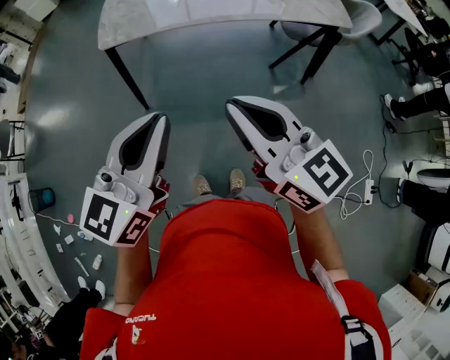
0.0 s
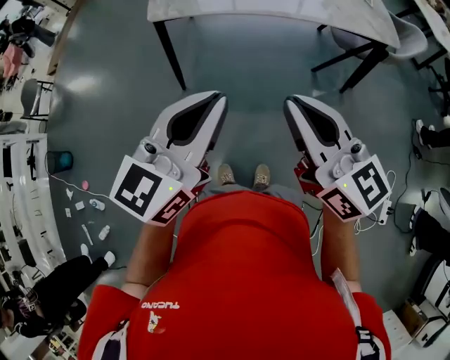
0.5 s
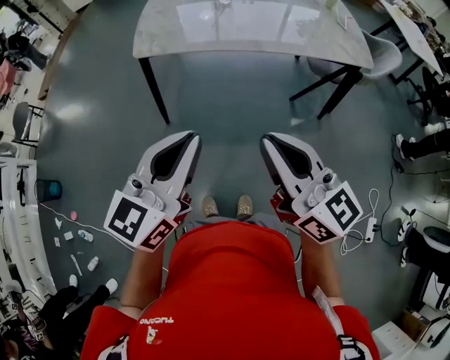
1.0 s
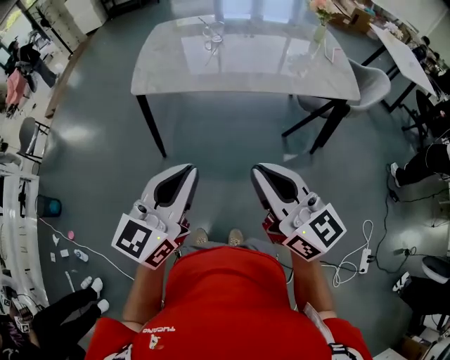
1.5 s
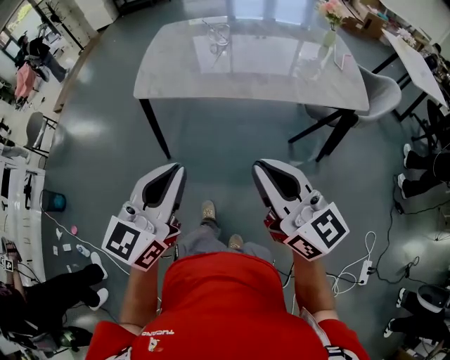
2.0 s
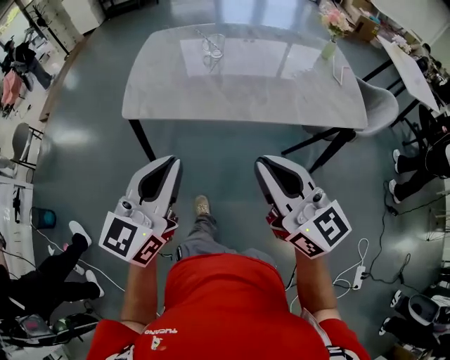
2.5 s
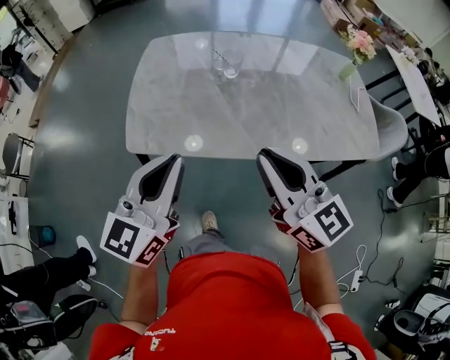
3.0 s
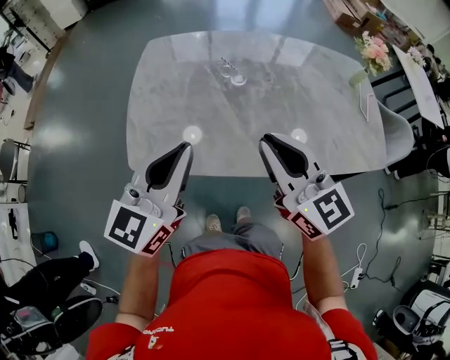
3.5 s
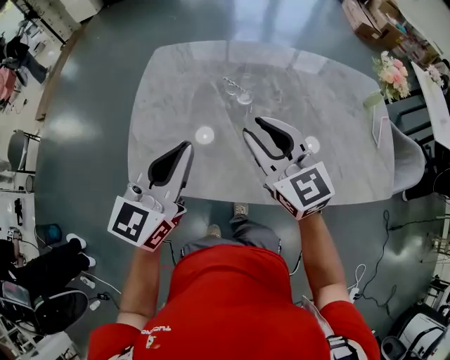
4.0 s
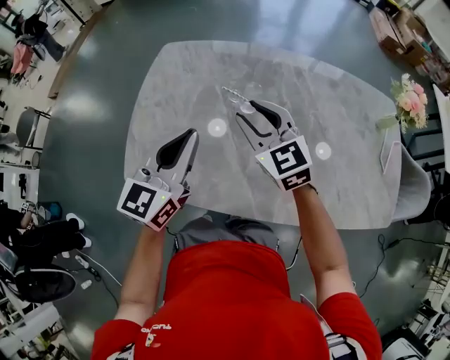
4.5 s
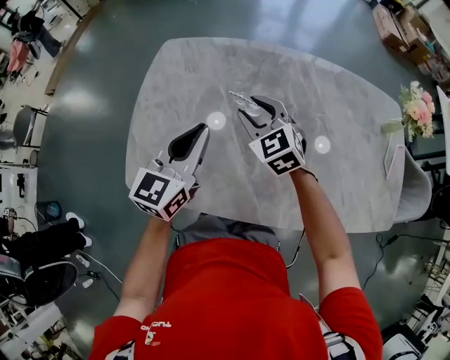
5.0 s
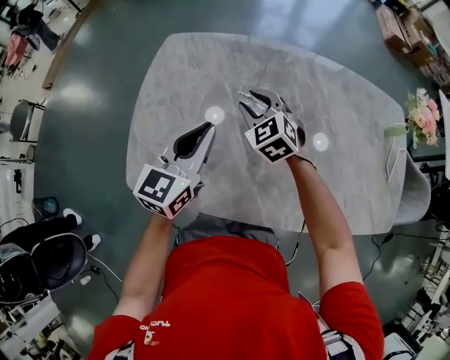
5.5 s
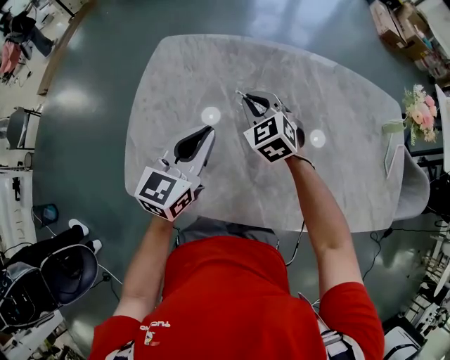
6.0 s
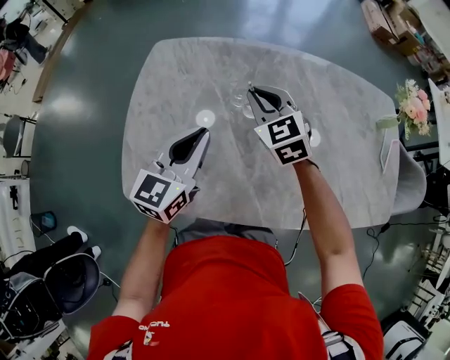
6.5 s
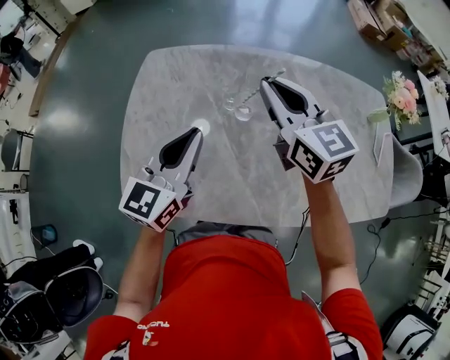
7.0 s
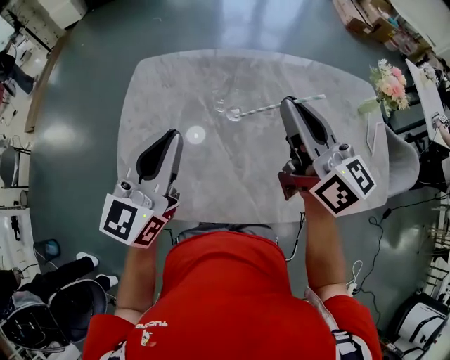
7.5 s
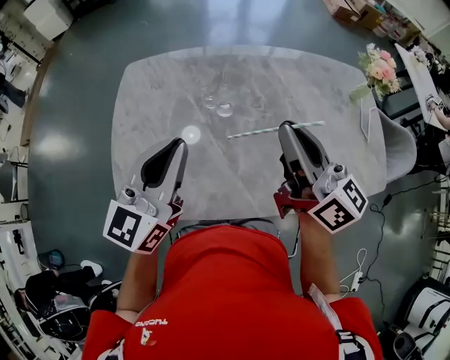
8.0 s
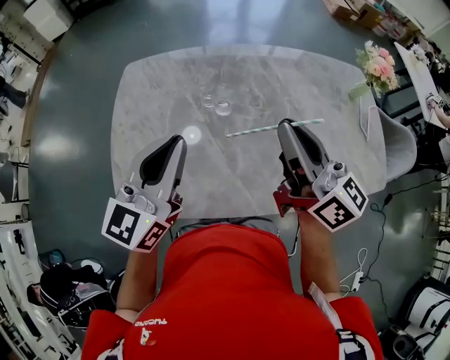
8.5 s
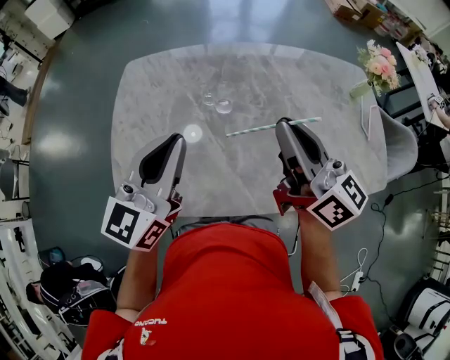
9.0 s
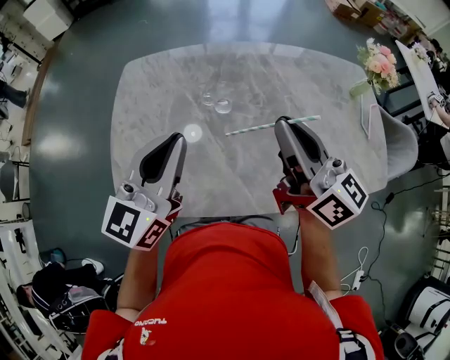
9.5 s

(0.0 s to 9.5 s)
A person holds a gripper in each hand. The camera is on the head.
0.0 s - 2.0 s: The left gripper heads forward and to the right, covering roughly 5 cm; the right gripper moves to the right and forward, some 10 cm.
2.0 s - 4.0 s: The two grippers travel together, forward, roughly 50 cm. The right gripper changes its angle by roughly 30 degrees, and opens.
4.0 s - 5.5 s: The left gripper moves forward and downward, about 15 cm. Meanwhile the right gripper travels forward and downward by some 25 cm, and swivels about 30 degrees.
5.5 s - 7.5 s: The left gripper travels upward by roughly 10 cm. The right gripper moves upward and to the right, about 25 cm, tilts its fingers roughly 40 degrees upward, and closes.
7.5 s - 9.5 s: The right gripper goes about 5 cm backward.

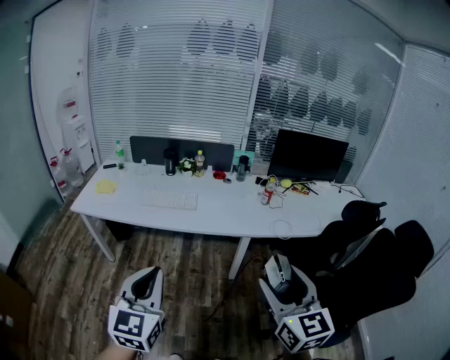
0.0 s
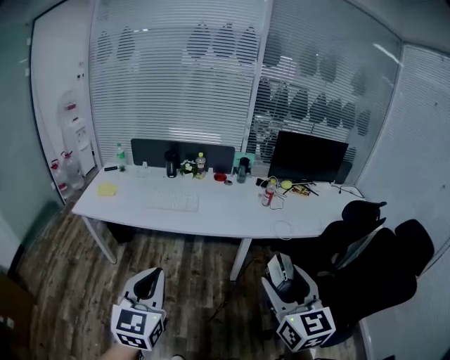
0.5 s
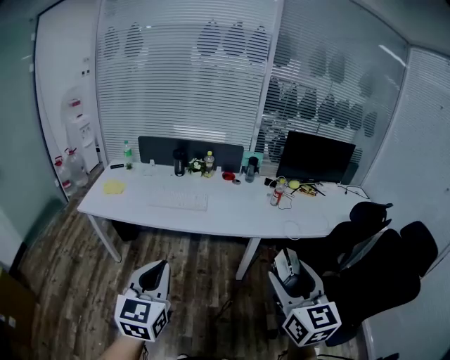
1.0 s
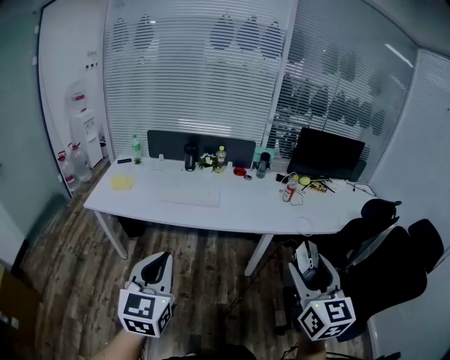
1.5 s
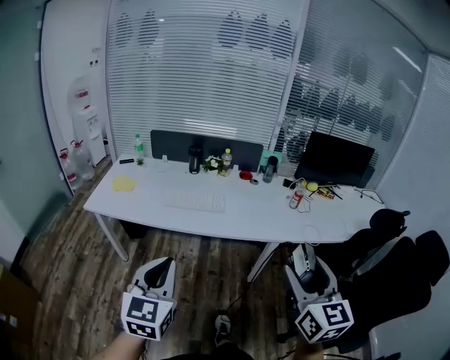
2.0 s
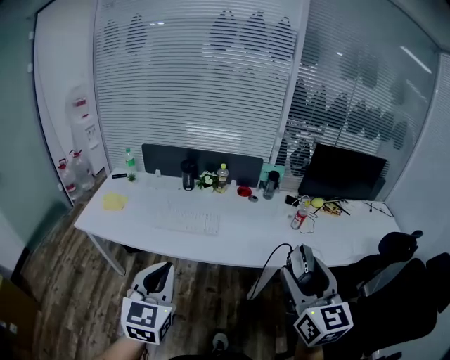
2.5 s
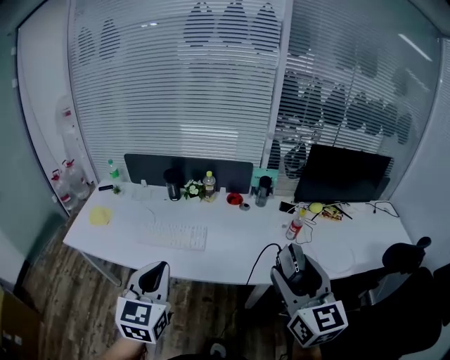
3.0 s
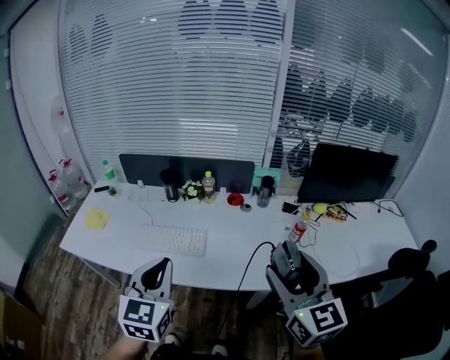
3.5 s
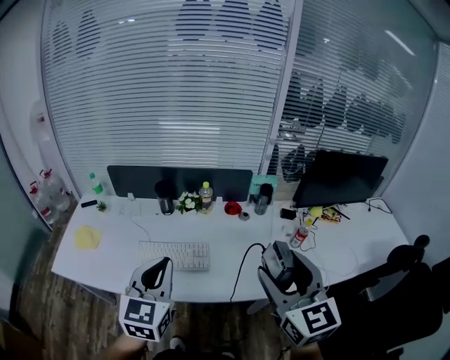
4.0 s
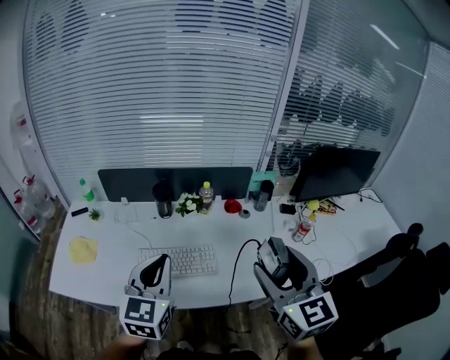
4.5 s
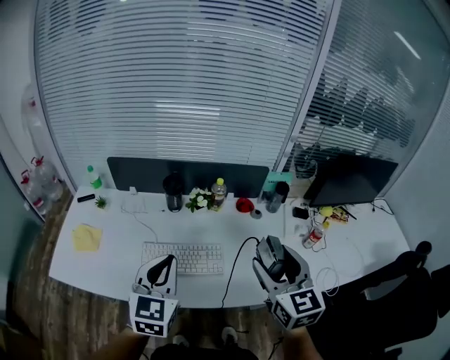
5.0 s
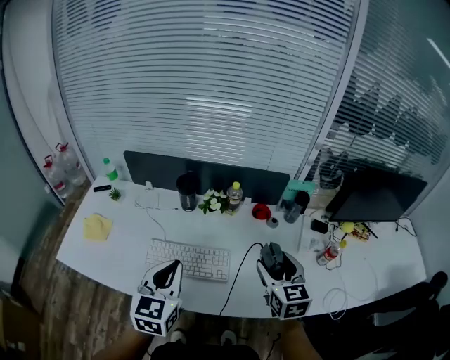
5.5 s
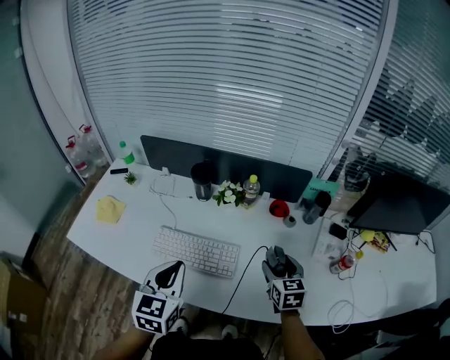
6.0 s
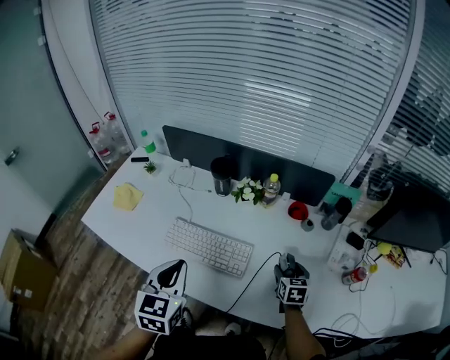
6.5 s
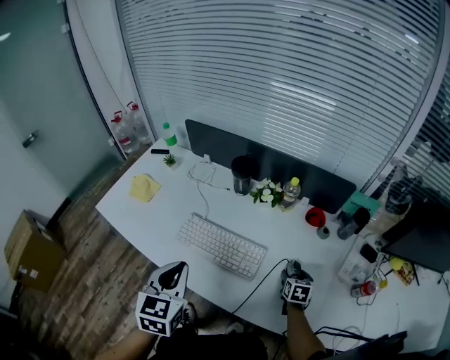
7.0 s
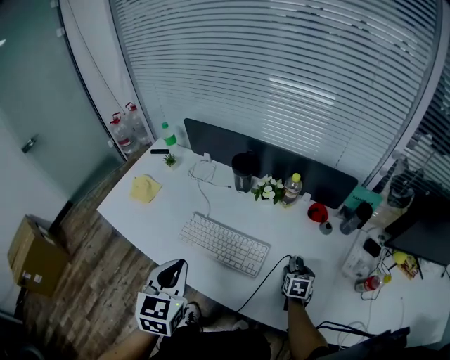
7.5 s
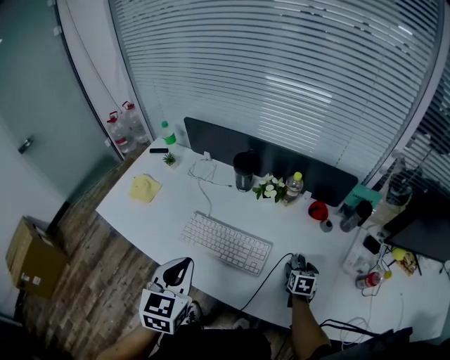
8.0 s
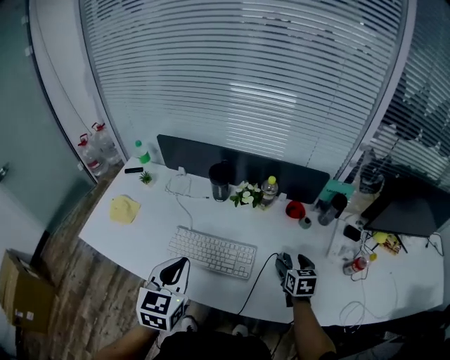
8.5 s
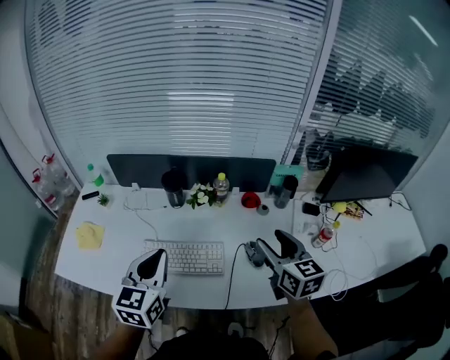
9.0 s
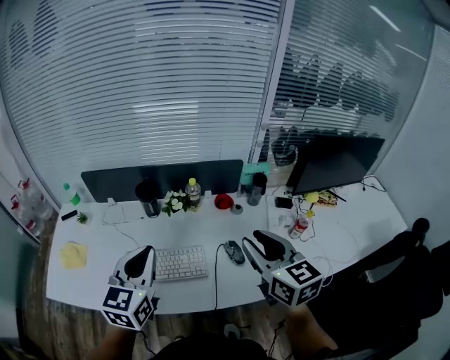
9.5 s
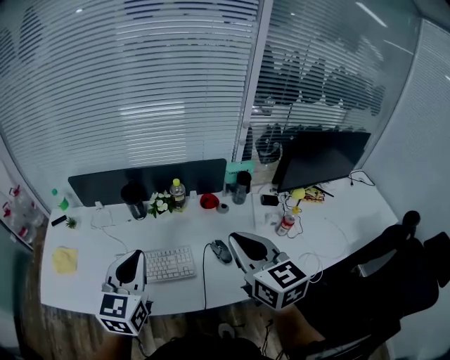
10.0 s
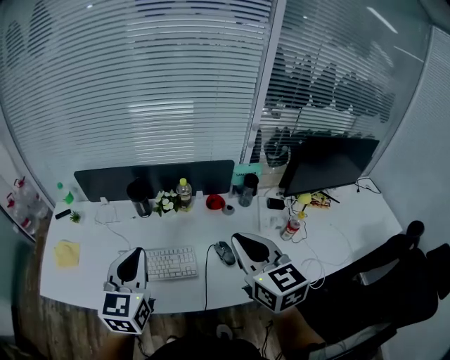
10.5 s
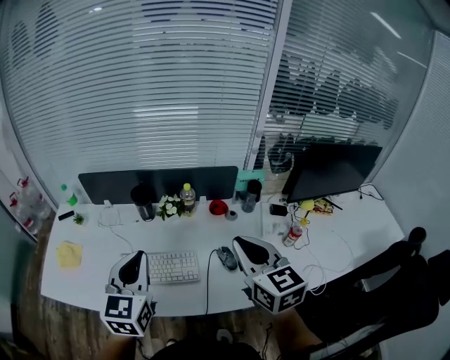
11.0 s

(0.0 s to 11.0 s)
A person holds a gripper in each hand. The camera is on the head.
0.0 s - 2.0 s: The two grippers go about 15 cm to the left and forward.
2.0 s - 3.5 s: The right gripper is displaced forward by about 30 cm, while the left gripper is displaced forward and to the right by about 30 cm.
3.5 s - 5.5 s: The left gripper goes about 20 cm forward, to the left and downward, while the right gripper heads forward, downward and to the left, covering roughly 30 cm.
5.5 s - 7.5 s: The left gripper changes place by approximately 5 cm, and turns by about 30 degrees. The right gripper travels downward by some 30 cm, and changes its angle by roughly 30 degrees.
7.5 s - 9.0 s: The left gripper heads upward and forward, covering about 10 cm, and turns by about 30 degrees; the right gripper is displaced upward by some 35 cm, and tips its fingers upward by approximately 30 degrees.
9.0 s - 11.0 s: The right gripper heads upward, covering approximately 10 cm, and closes its fingers, while the left gripper moves upward, some 5 cm.

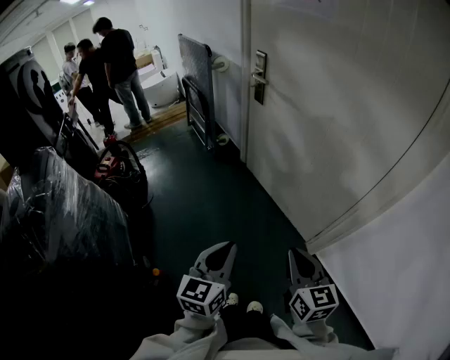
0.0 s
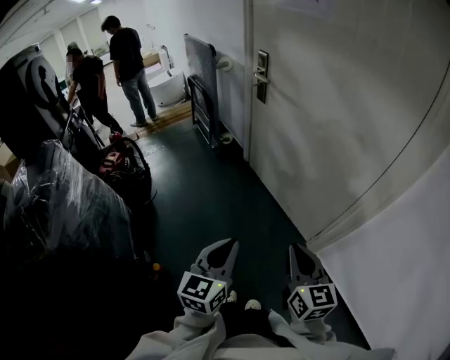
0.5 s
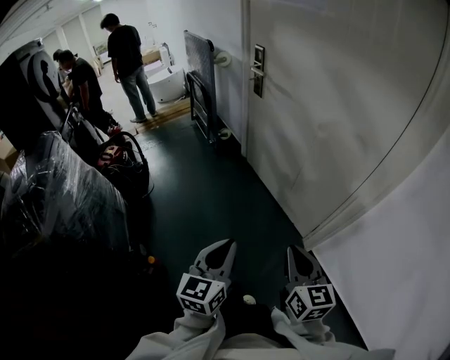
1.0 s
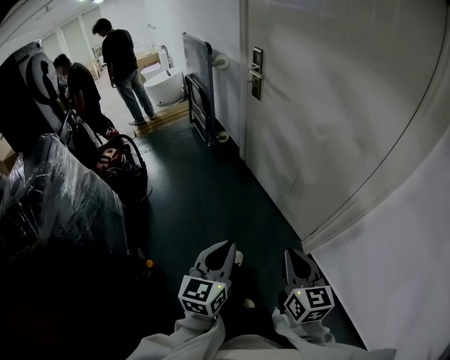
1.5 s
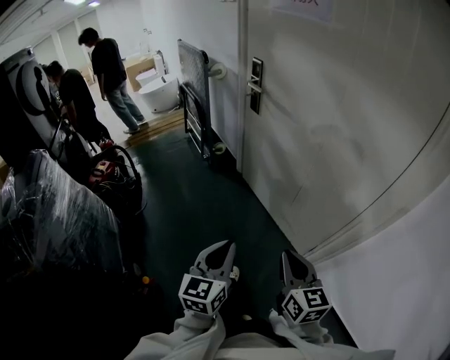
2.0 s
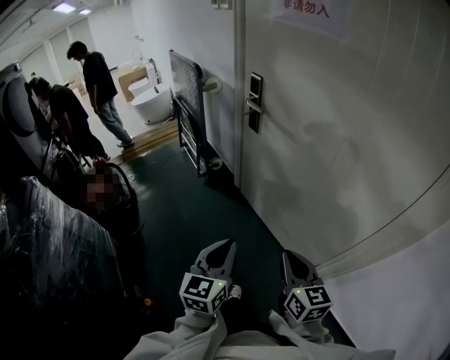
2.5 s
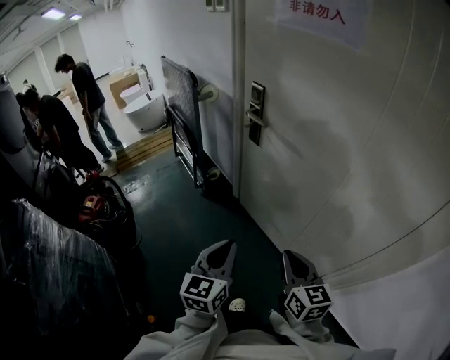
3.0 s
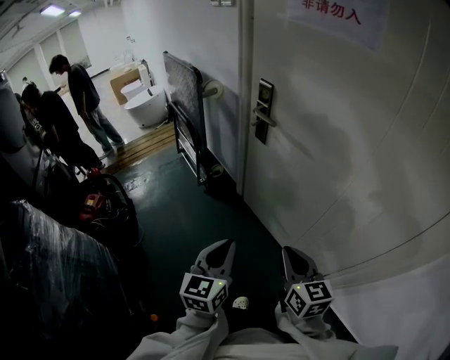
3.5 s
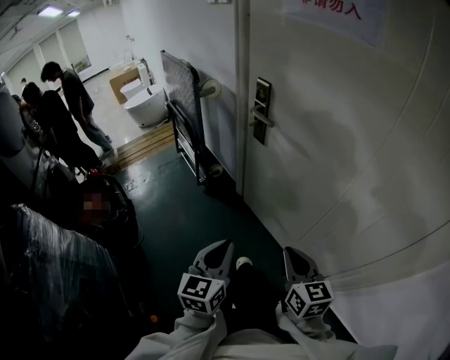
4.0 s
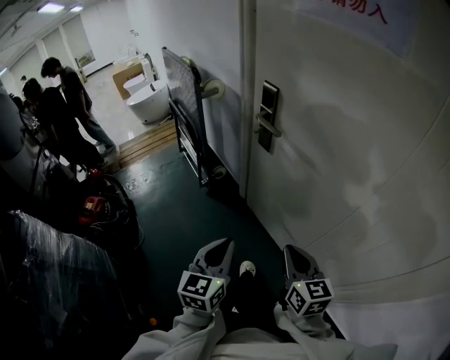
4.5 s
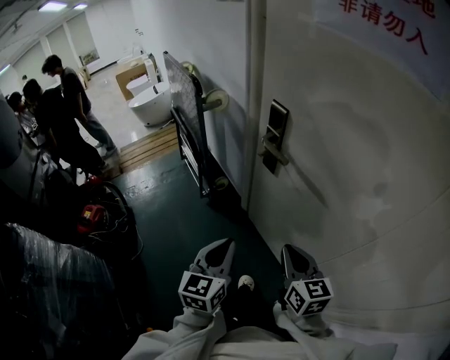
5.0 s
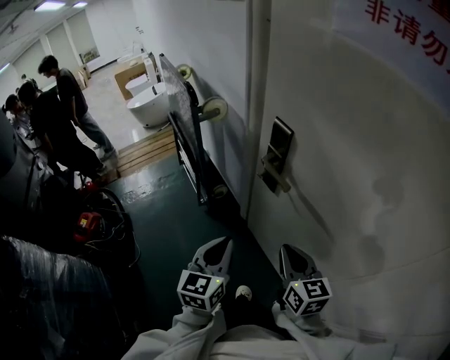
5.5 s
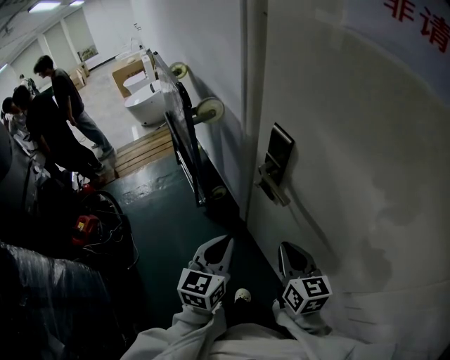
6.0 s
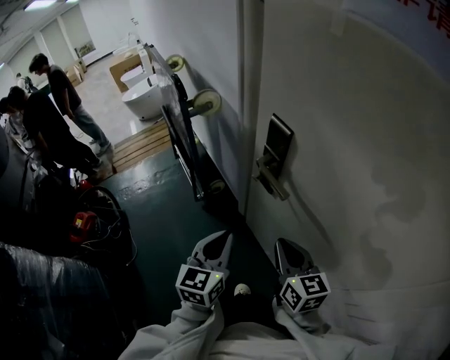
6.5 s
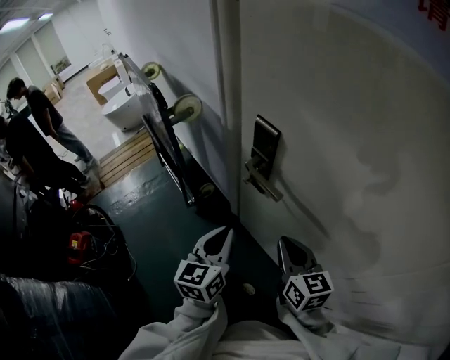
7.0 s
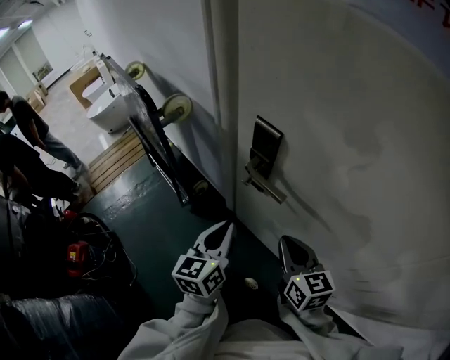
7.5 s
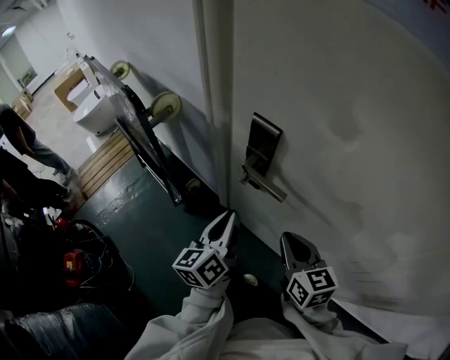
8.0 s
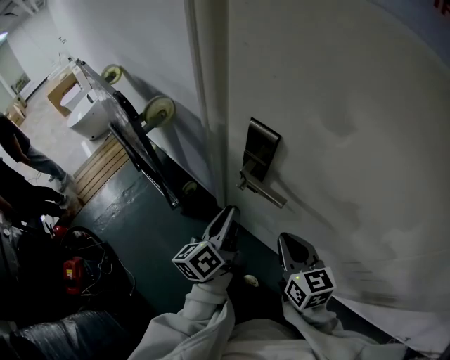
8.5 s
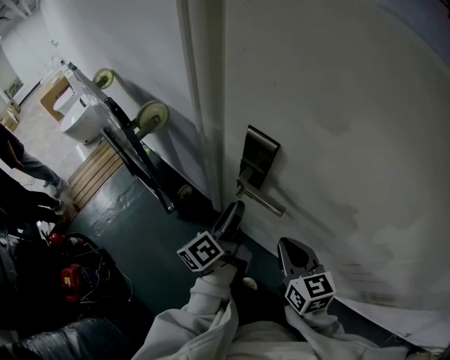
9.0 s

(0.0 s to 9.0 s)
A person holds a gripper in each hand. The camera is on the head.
0.0 s - 2.0 s: The grippers both shift forward by roughly 5 cm.
2.0 s - 4.5 s: The two grippers go approximately 30 cm forward.
4.5 s - 7.0 s: Both grippers move forward, some 30 cm.
7.0 s - 9.0 s: The left gripper goes roughly 15 cm forward, twists about 50 degrees counterclockwise, seen from behind, and opens up.
